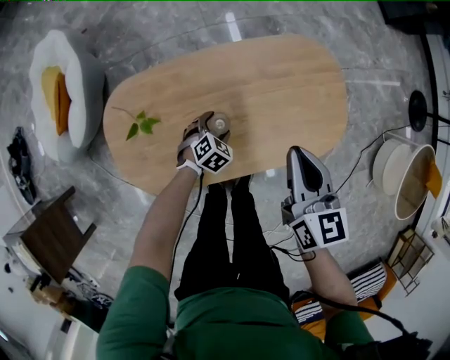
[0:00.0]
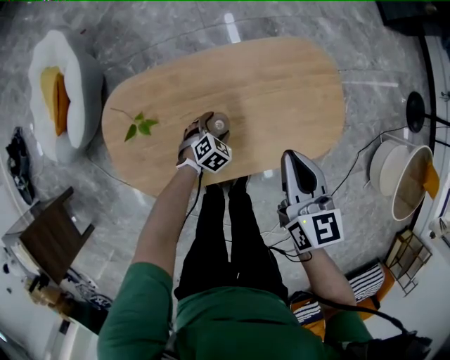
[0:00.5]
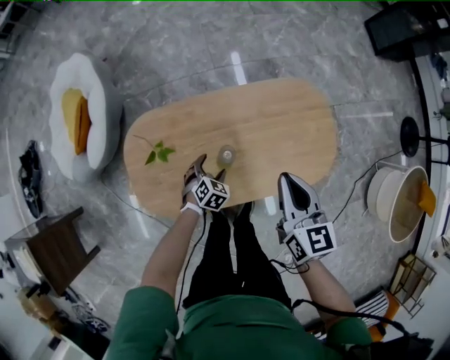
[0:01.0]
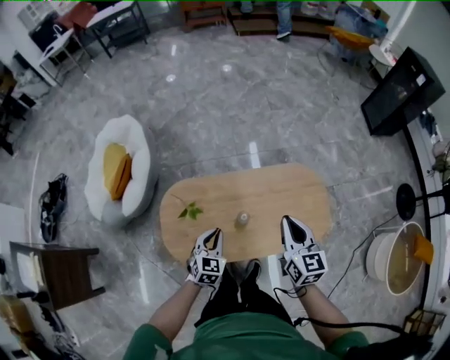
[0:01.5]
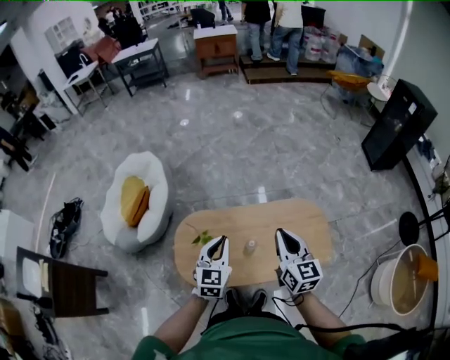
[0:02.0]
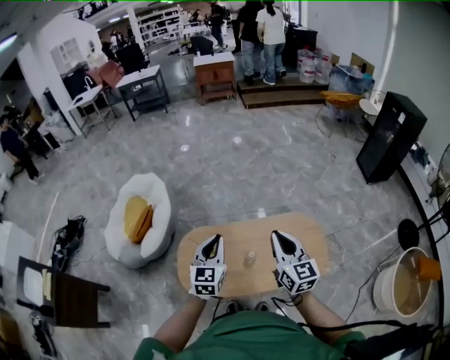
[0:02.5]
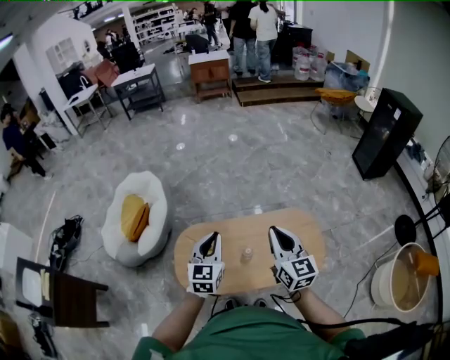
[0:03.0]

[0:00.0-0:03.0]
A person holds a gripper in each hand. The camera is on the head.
0.0 to 1.5 s: The right gripper moves upward, some 20 cm. The left gripper is displaced upward by some 35 cm, changes its angle by some 40 degrees, and closes its fingers.
1.5 to 3.0 s: The right gripper heads upward, covering some 15 cm, while the left gripper is displaced upward by some 25 cm, and rotates approximately 30 degrees.

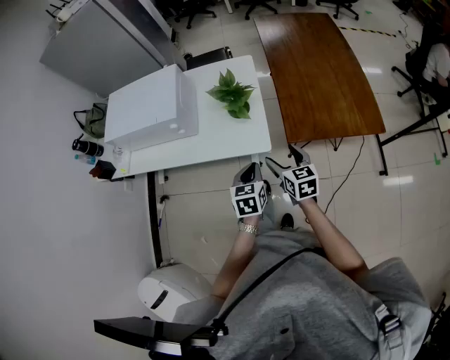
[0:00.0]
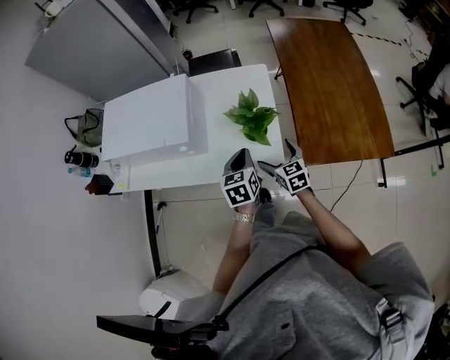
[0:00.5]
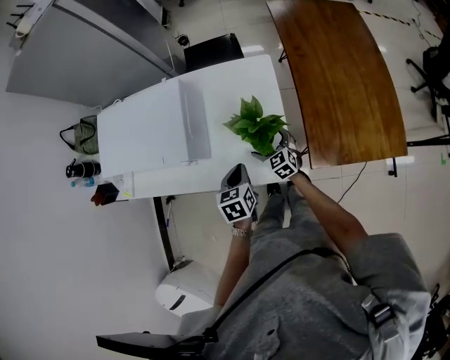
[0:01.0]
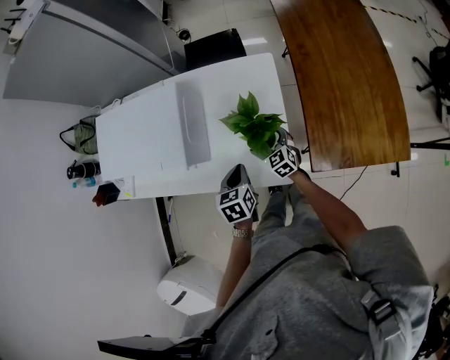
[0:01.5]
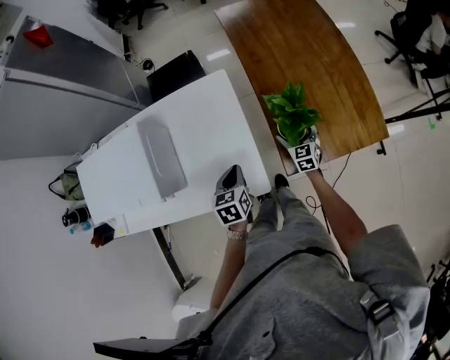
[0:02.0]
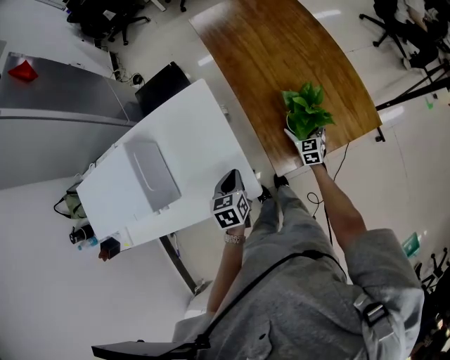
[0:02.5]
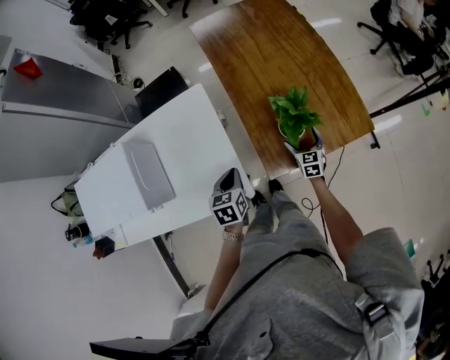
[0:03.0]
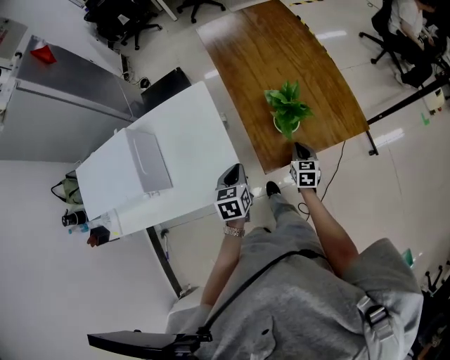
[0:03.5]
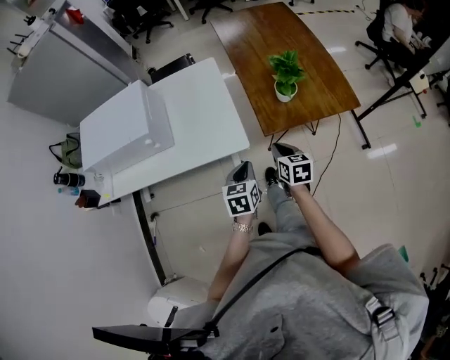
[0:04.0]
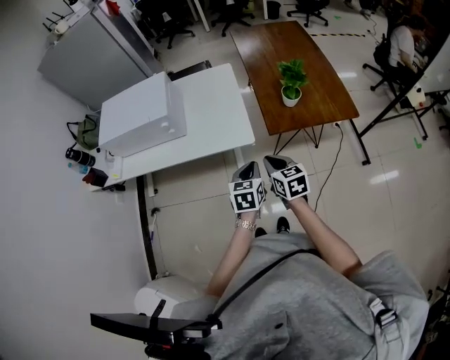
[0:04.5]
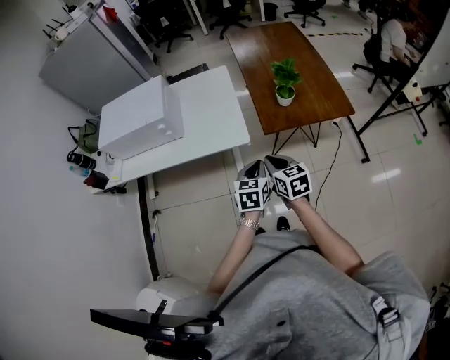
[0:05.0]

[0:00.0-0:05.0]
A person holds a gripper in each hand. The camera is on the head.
0.0 to 2.5 s: The right gripper ends up about 40 cm from where it was, and rotates some 30 degrees, while the left gripper changes place by about 25 cm.
2.5 to 5.0 s: The left gripper heads backward, covering approximately 35 cm, while the right gripper goes roughly 50 cm backward and upward, rotates some 30 degrees, and closes.

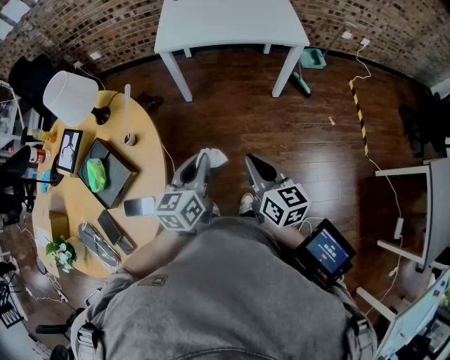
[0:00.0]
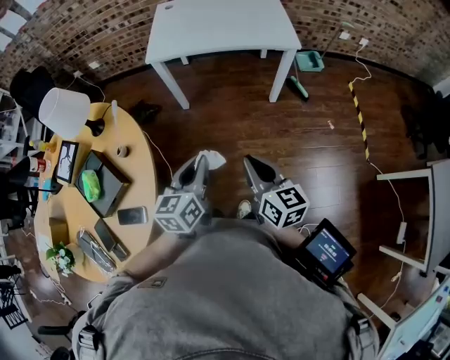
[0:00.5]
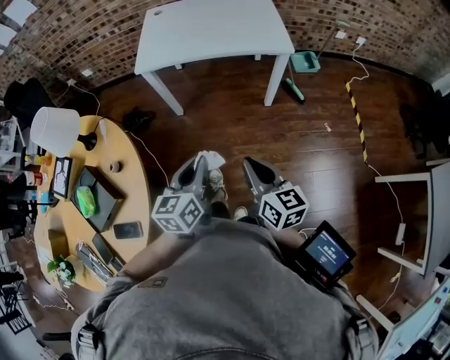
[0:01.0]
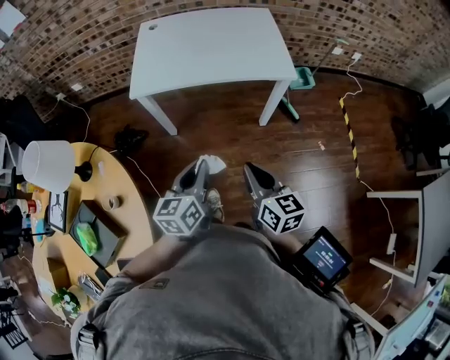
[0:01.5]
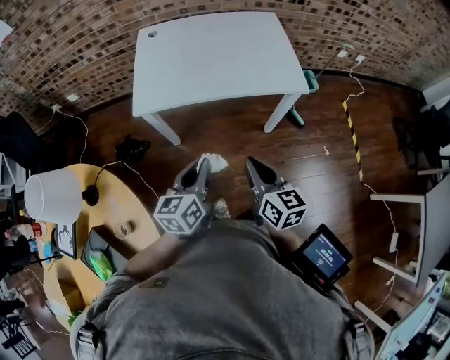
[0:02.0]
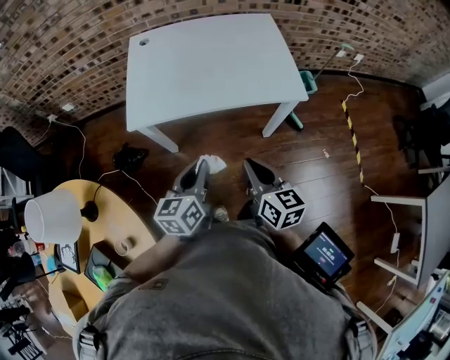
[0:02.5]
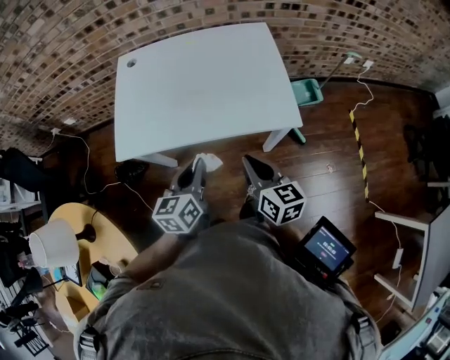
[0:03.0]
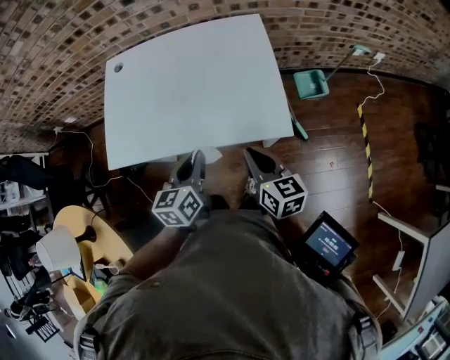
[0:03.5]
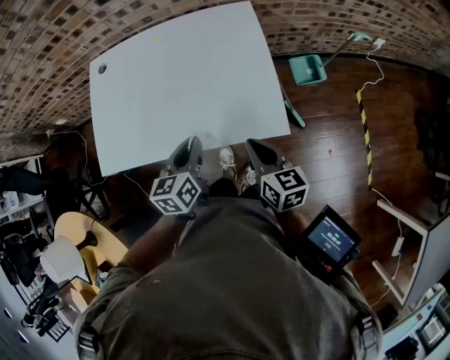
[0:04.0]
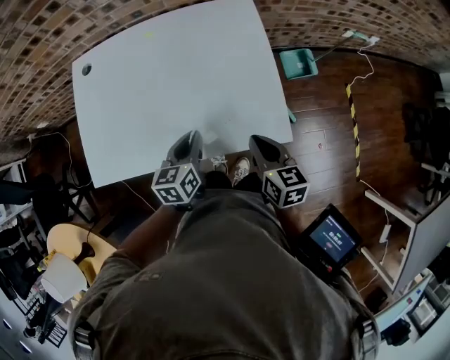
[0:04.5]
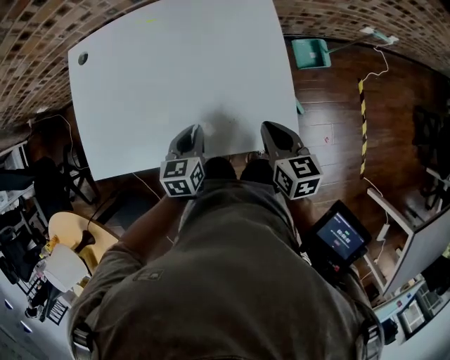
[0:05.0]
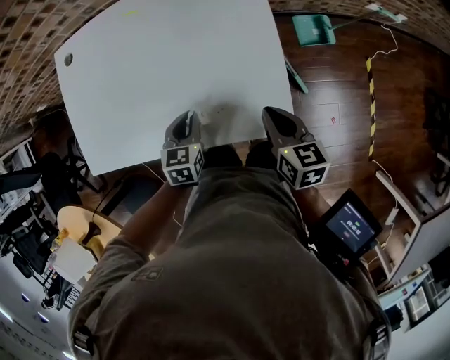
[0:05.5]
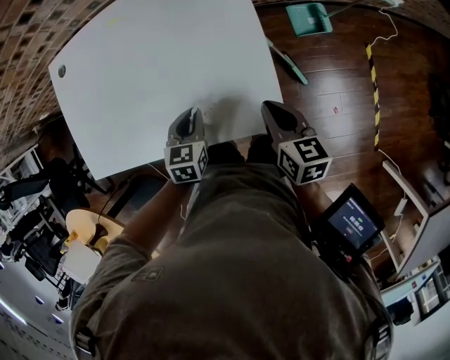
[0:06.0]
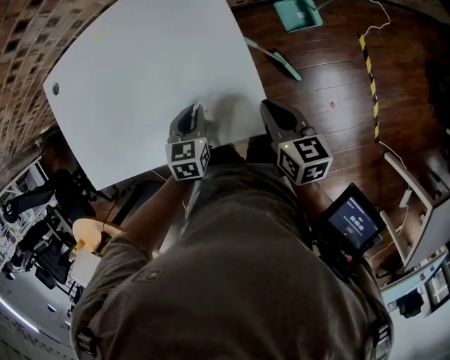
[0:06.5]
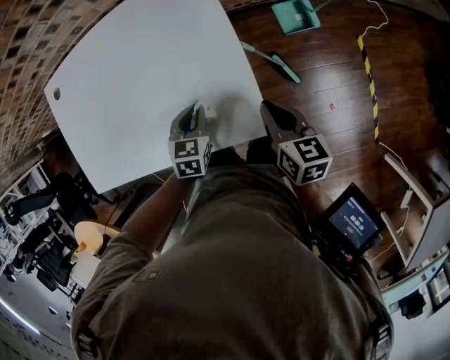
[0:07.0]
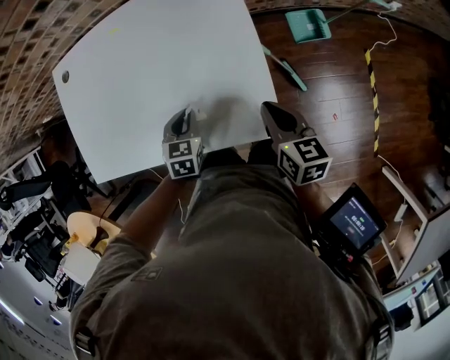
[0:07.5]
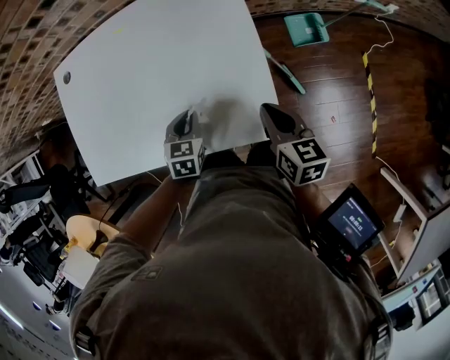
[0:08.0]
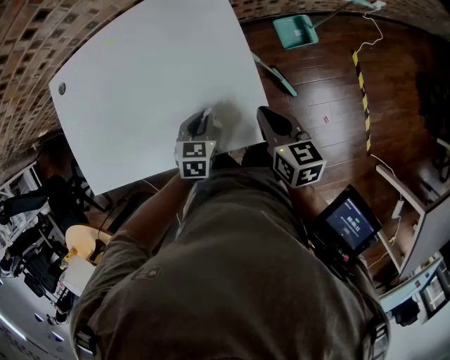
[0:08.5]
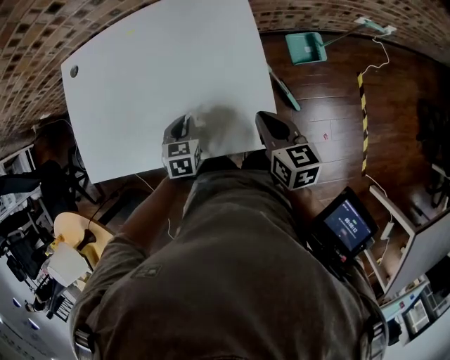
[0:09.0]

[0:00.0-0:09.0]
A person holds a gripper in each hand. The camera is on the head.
0.0 to 2.0 s: Both grippers move forward, roughly 30 cm.
2.0 to 4.5 s: The grippers both shift forward and to the right by about 40 cm.
4.5 to 7.0 s: The right gripper moves to the right and forward, approximately 15 cm, while the left gripper heads to the right and downward, covering approximately 15 cm, and changes its angle by approximately 30 degrees.
7.0 to 9.0 s: The left gripper moves left and right over some 10 cm, changing direction 2 times.

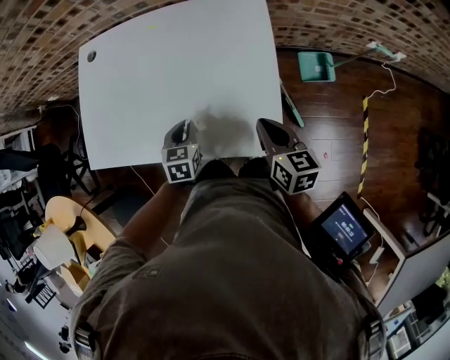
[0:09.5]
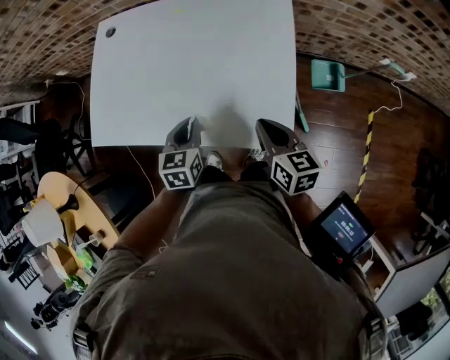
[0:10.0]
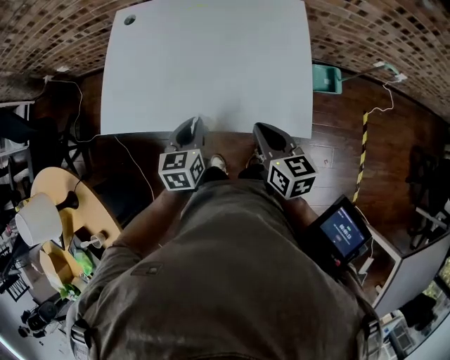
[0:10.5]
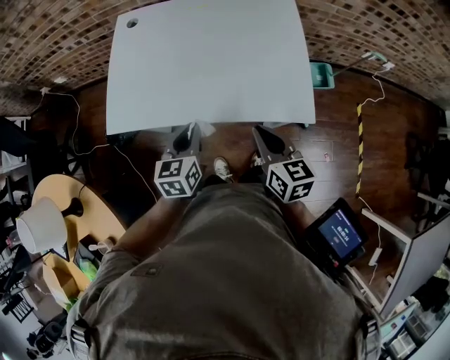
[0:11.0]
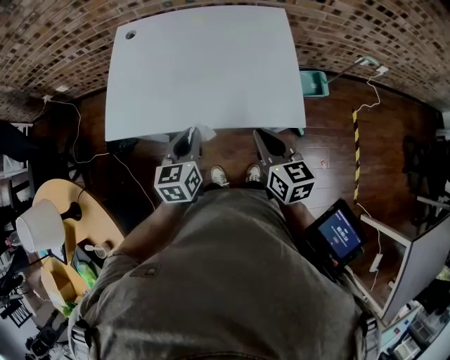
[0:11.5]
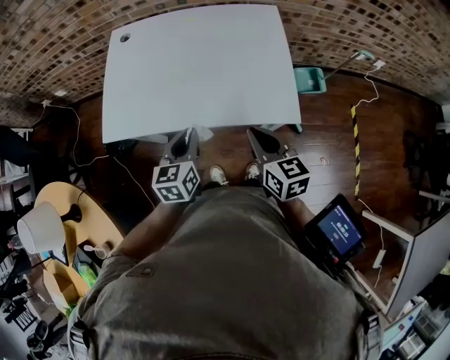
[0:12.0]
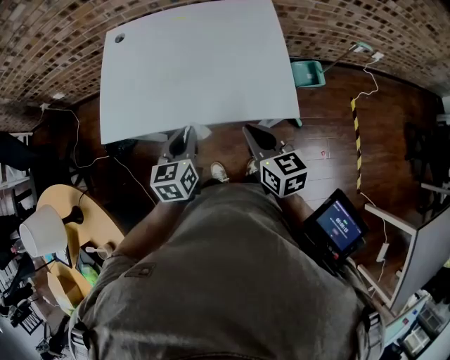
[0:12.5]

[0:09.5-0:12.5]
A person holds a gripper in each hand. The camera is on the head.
9.5 to 11.0 s: The right gripper travels to the left and backward by roughly 20 cm, while the left gripper heads to the left, upward and backward, covering approximately 20 cm, and changes its angle by approximately 20 degrees.
11.0 to 12.5 s: The grippers move only a little.

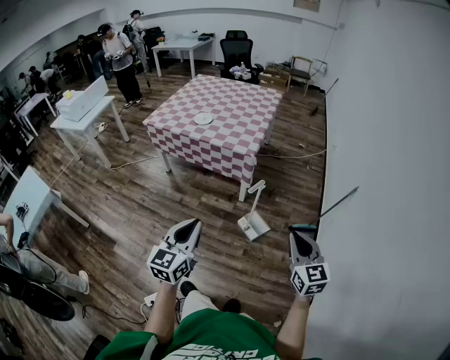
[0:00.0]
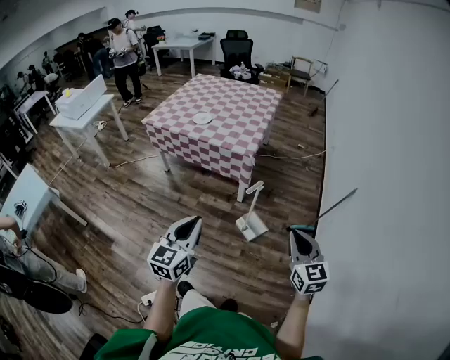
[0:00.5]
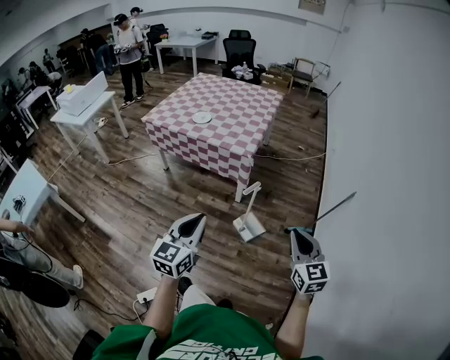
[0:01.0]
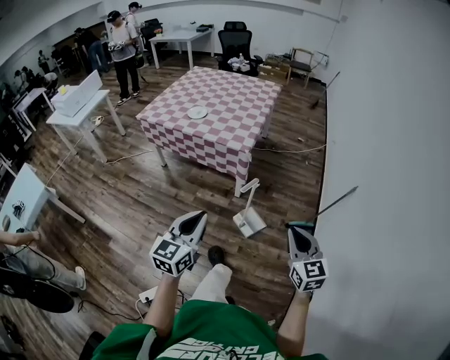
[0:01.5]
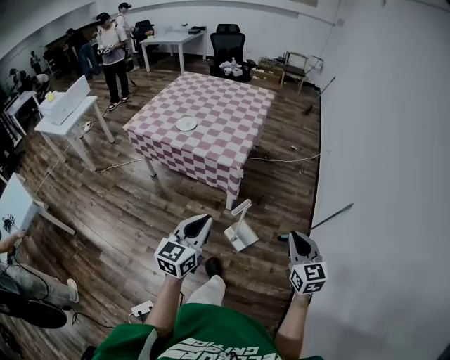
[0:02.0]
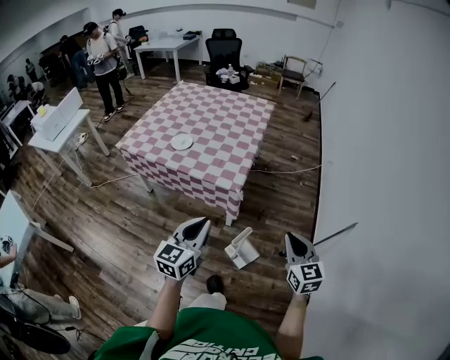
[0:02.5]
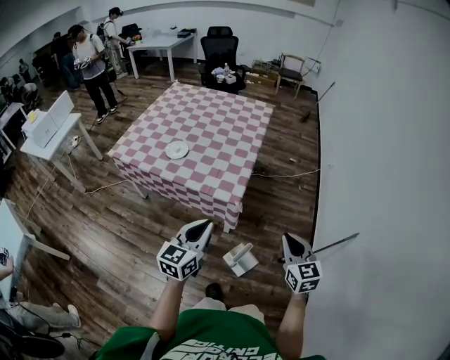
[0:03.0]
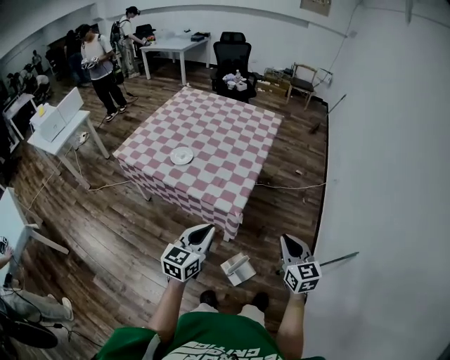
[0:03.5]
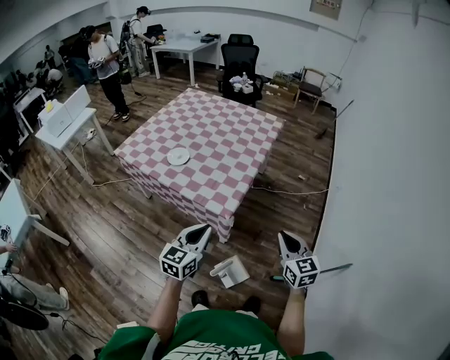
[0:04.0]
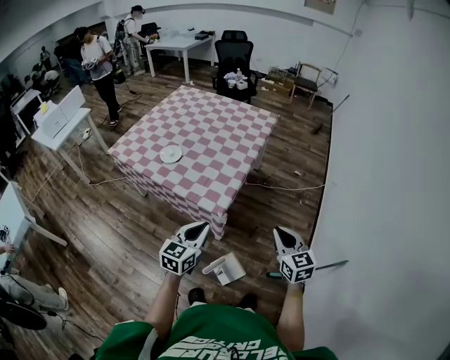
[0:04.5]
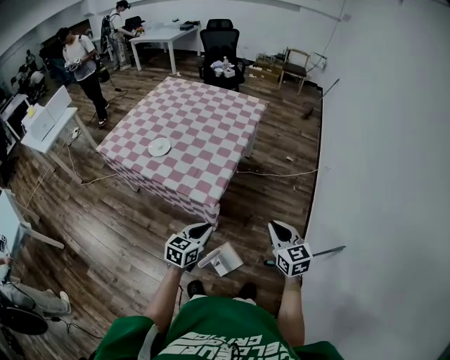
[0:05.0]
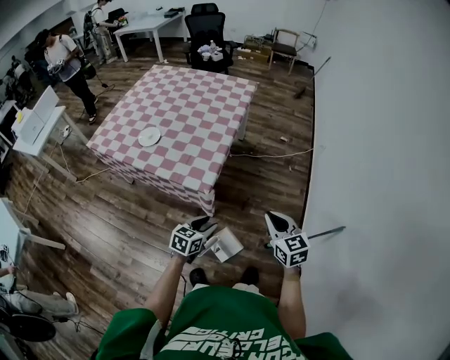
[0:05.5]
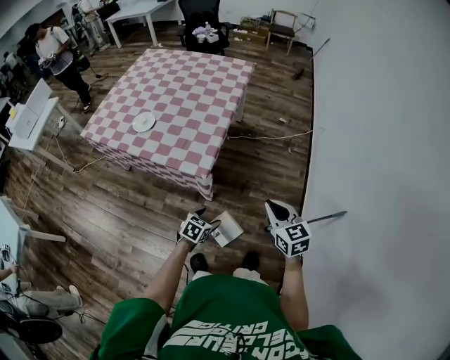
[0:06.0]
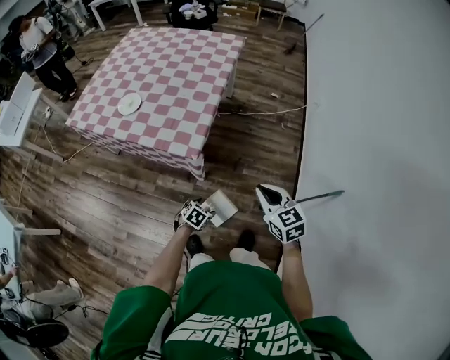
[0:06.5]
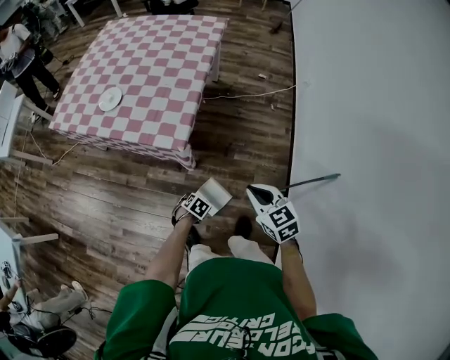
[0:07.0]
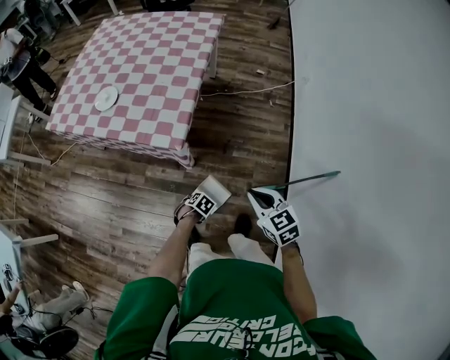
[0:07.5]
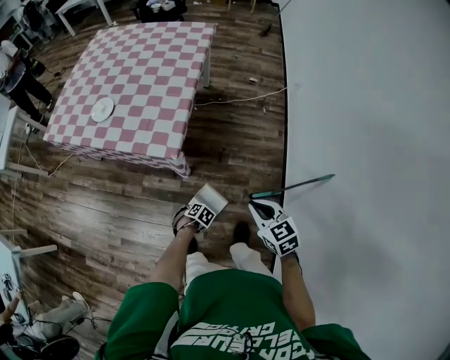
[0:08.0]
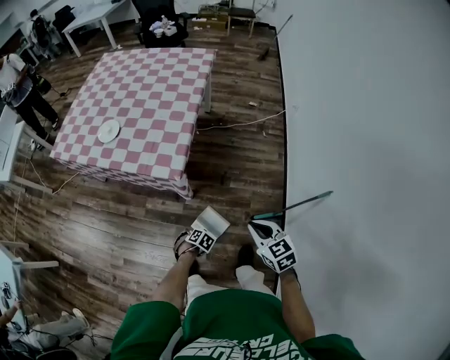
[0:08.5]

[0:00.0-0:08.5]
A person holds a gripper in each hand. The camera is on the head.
0.0 to 2.0 s: The right gripper moves forward, about 15 cm. The left gripper moves forward and to the right, about 20 cm.
2.0 to 4.0 s: The two grippers go about 30 cm forward.
4.0 to 6.5 s: The right gripper travels downward by approximately 10 cm, while the left gripper is displaced downward by roughly 35 cm, angles its fingers downward, by roughly 50 degrees, and opens.
6.5 to 8.5 s: The left gripper goes some 10 cm downward, changes its angle by approximately 30 degrees, and closes. The right gripper shifts by approximately 10 cm.
